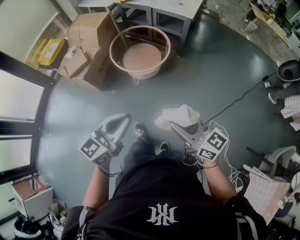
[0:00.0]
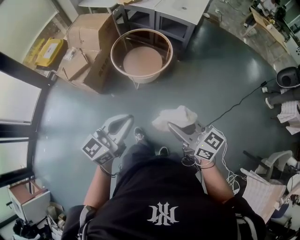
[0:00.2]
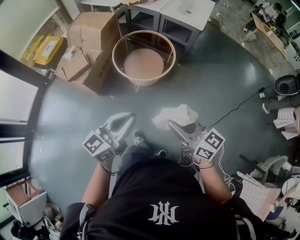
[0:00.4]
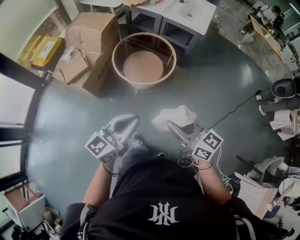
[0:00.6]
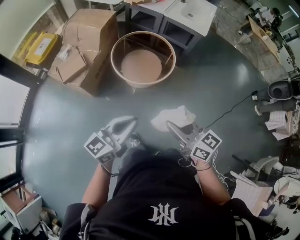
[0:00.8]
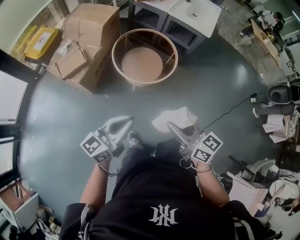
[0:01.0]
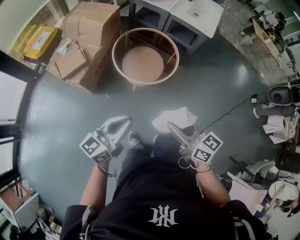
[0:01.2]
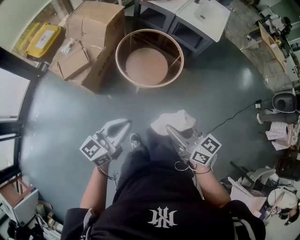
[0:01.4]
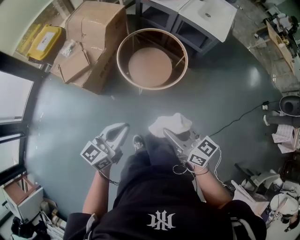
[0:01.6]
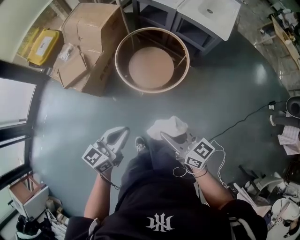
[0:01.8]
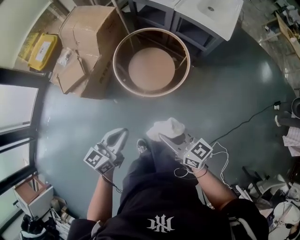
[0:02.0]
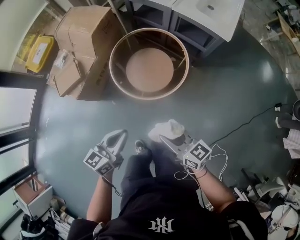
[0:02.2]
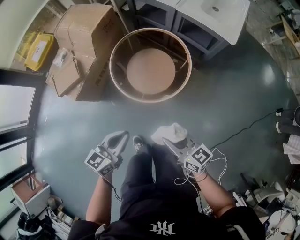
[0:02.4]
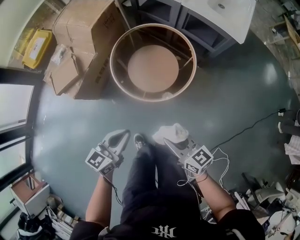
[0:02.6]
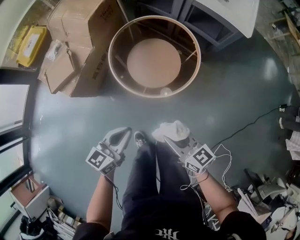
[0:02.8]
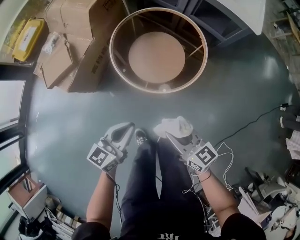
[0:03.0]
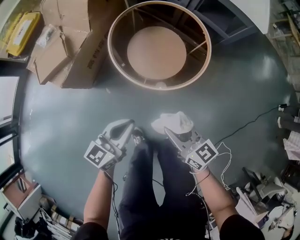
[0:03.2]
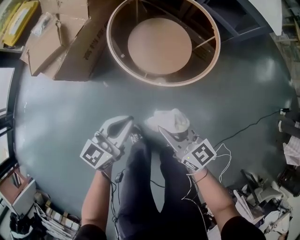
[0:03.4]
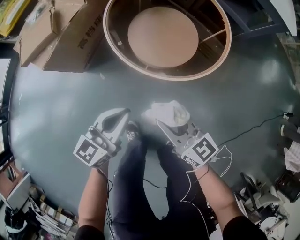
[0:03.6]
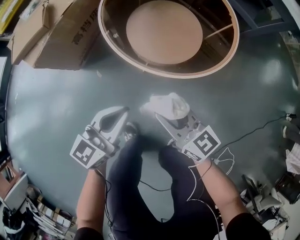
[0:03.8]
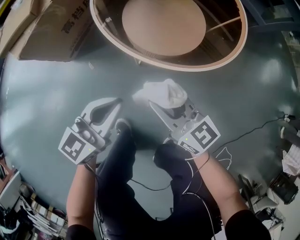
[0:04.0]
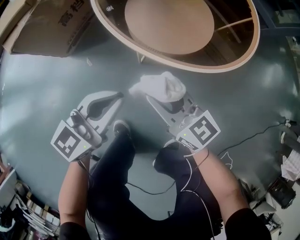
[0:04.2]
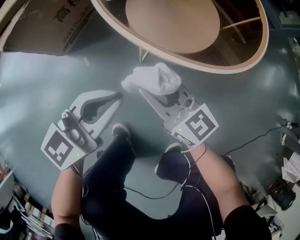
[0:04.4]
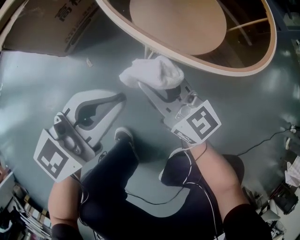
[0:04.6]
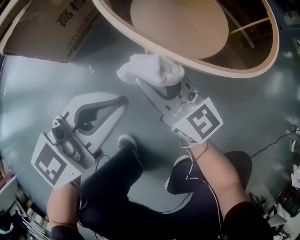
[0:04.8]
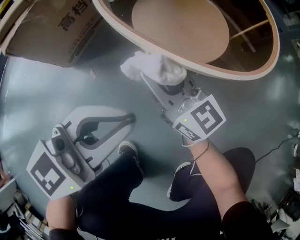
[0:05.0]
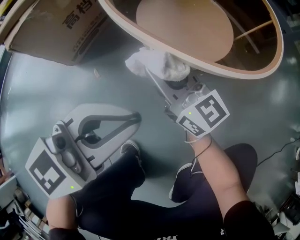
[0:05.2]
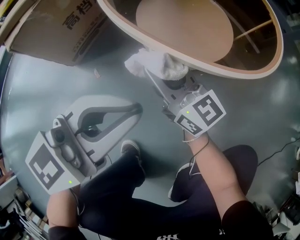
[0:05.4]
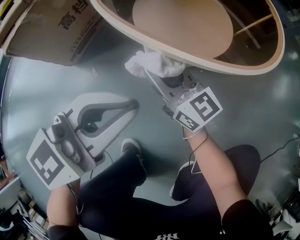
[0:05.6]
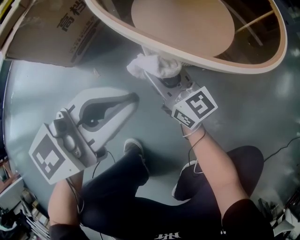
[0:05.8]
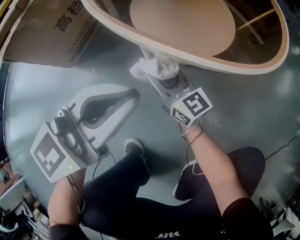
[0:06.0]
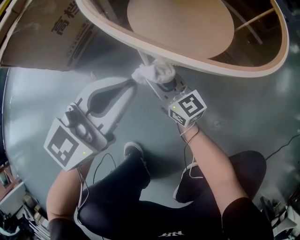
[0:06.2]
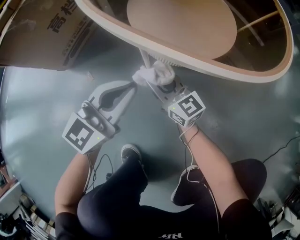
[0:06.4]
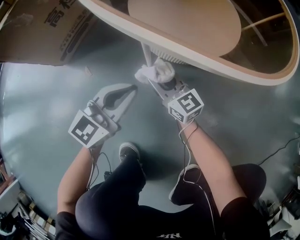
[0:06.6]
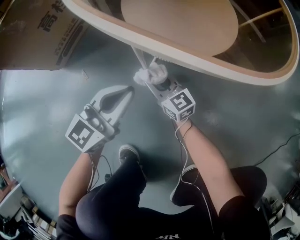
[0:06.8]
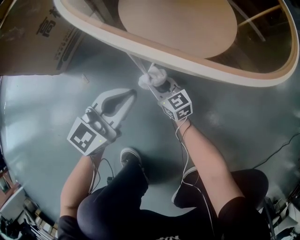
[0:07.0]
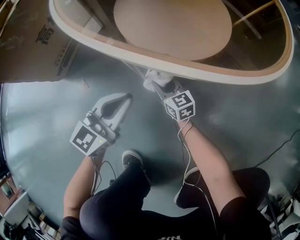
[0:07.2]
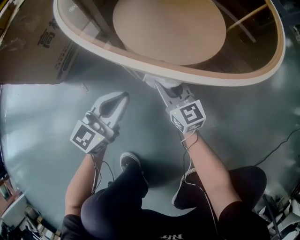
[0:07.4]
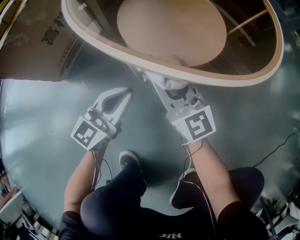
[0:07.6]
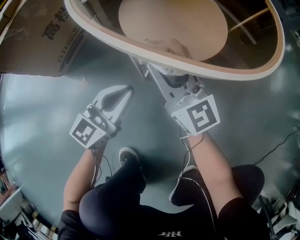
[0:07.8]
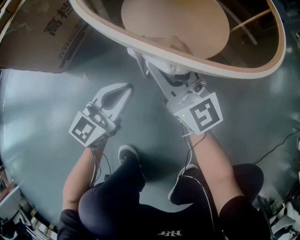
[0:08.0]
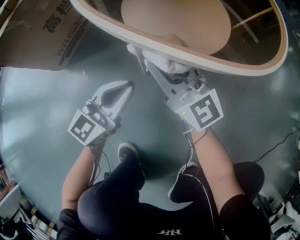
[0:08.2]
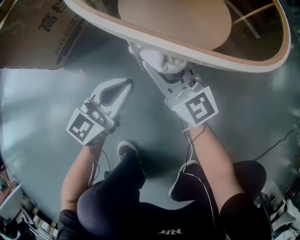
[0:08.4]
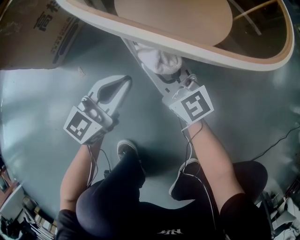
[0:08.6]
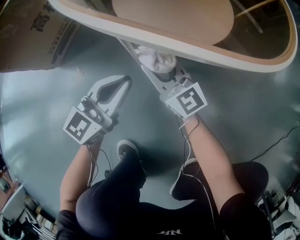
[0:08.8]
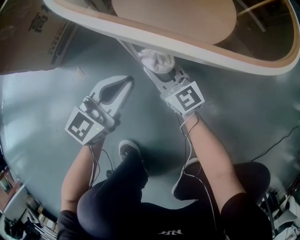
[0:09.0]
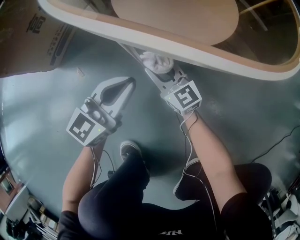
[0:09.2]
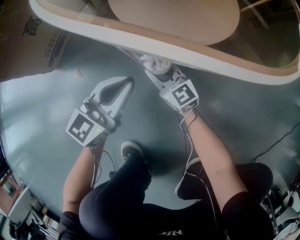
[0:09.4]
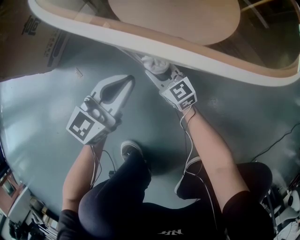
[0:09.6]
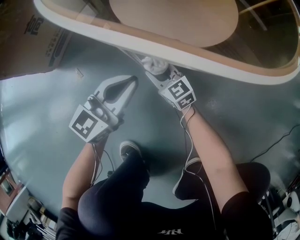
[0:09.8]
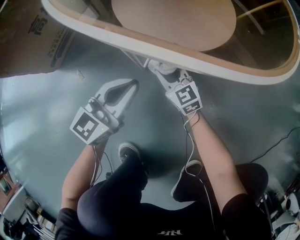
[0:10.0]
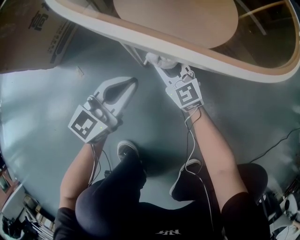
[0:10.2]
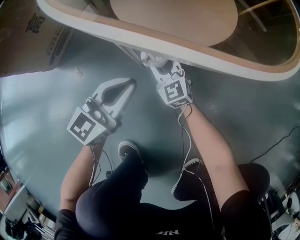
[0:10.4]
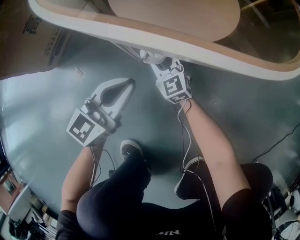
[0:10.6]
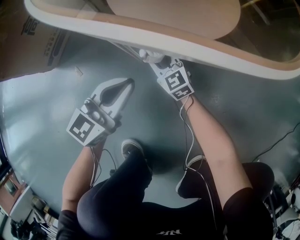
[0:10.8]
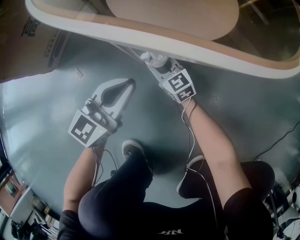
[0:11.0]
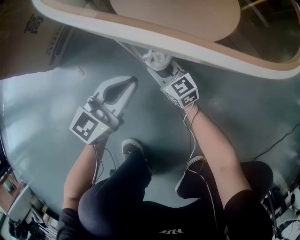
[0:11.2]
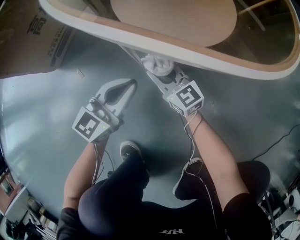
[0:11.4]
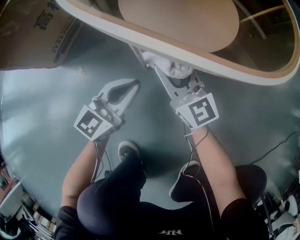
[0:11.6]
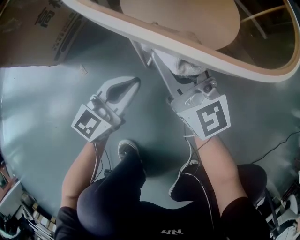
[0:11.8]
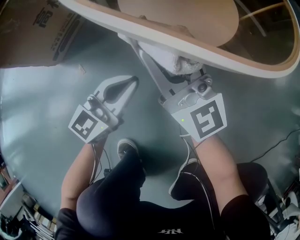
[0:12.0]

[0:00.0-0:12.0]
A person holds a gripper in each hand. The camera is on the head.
0:00.0 to 0:01.6: The left gripper moves forward, to the left and downward, roughly 30 cm, while the right gripper goes approximately 30 cm forward and to the left.
0:01.6 to 0:03.0: Both grippers travel together downward and forward, about 25 cm.
0:03.0 to 0:04.4: The two grippers go approximately 30 cm downward.
0:04.4 to 0:06.0: The right gripper moves downward and forward, approximately 15 cm.
0:06.0 to 0:07.6: The right gripper reaches approximately 20 cm downward, then returns, and rotates about 20 degrees. Meanwhile the left gripper is displaced downward by some 20 cm.
0:07.6 to 0:09.0: The right gripper heads downward, covering roughly 15 cm.
0:09.0 to 0:10.4: The right gripper shifts about 10 cm downward, and rotates roughly 20 degrees.
0:10.4 to 0:12.0: The right gripper goes about 25 cm upward, and angles its fingers upward, by some 40 degrees.

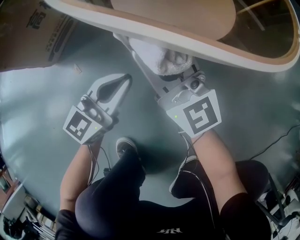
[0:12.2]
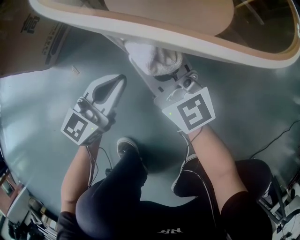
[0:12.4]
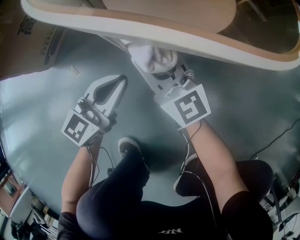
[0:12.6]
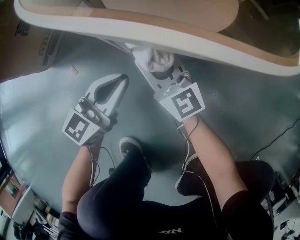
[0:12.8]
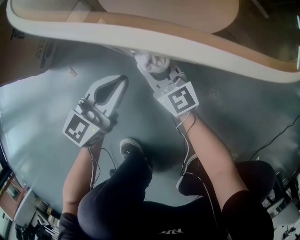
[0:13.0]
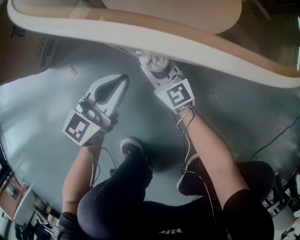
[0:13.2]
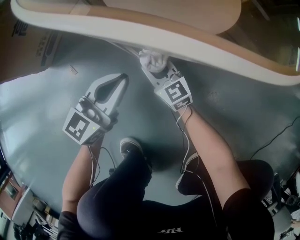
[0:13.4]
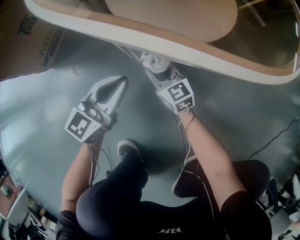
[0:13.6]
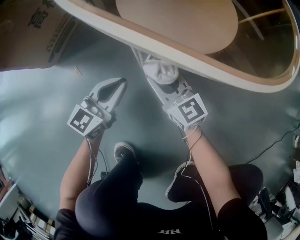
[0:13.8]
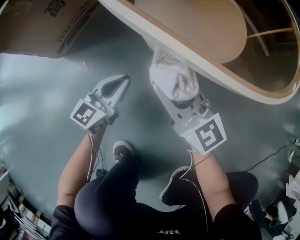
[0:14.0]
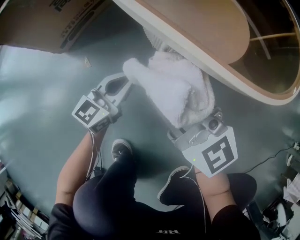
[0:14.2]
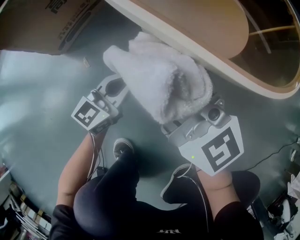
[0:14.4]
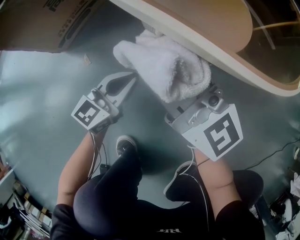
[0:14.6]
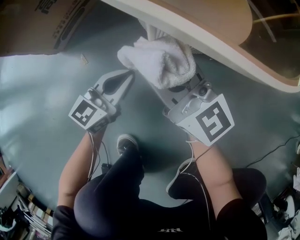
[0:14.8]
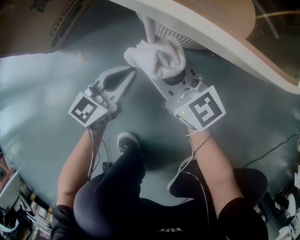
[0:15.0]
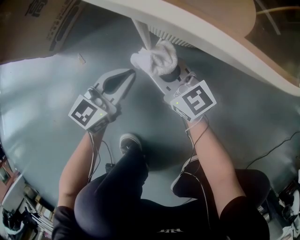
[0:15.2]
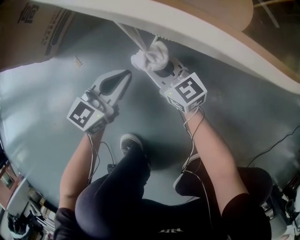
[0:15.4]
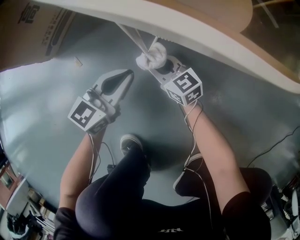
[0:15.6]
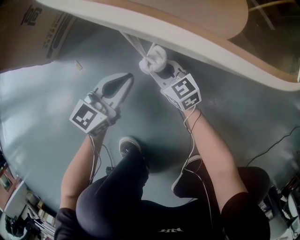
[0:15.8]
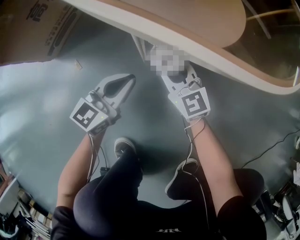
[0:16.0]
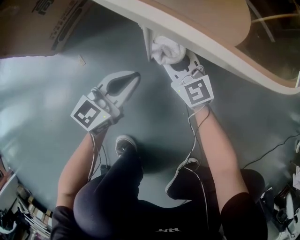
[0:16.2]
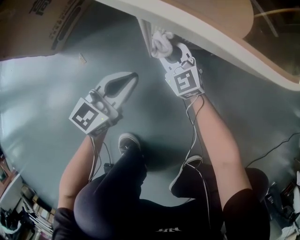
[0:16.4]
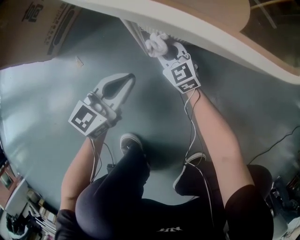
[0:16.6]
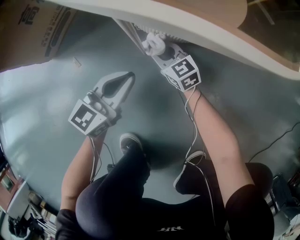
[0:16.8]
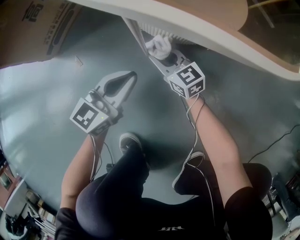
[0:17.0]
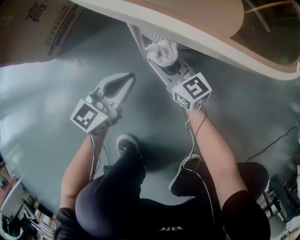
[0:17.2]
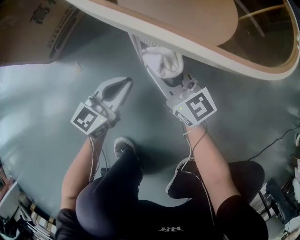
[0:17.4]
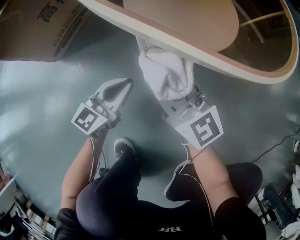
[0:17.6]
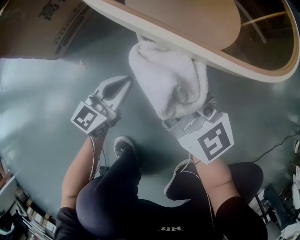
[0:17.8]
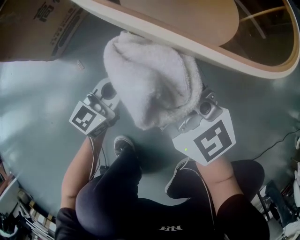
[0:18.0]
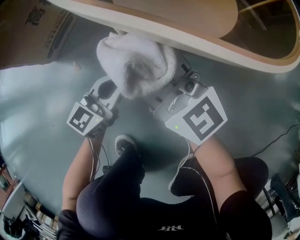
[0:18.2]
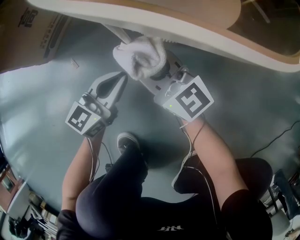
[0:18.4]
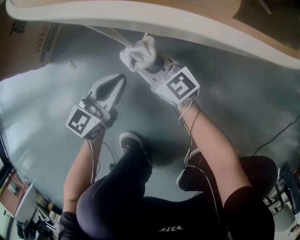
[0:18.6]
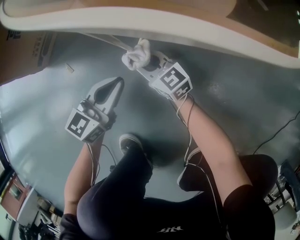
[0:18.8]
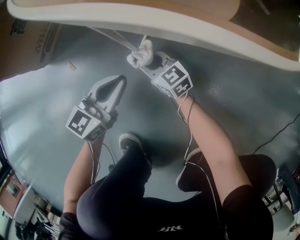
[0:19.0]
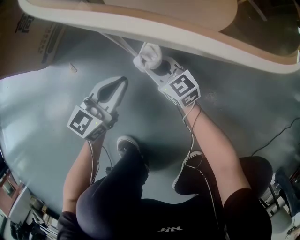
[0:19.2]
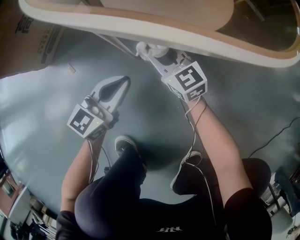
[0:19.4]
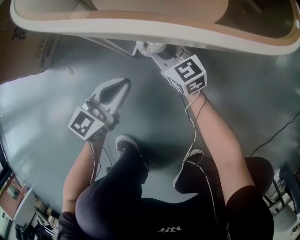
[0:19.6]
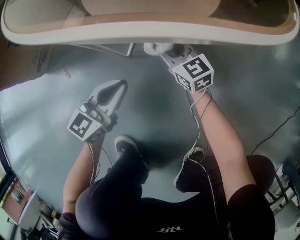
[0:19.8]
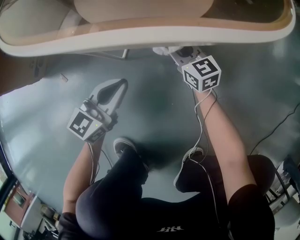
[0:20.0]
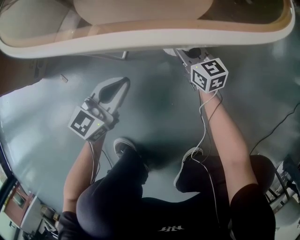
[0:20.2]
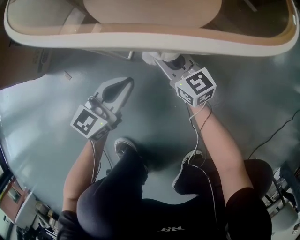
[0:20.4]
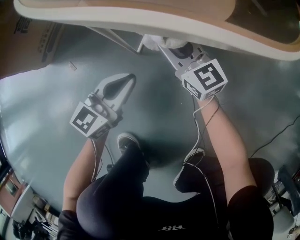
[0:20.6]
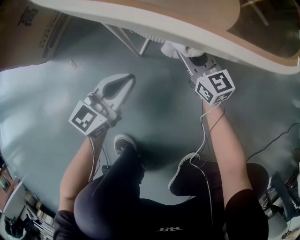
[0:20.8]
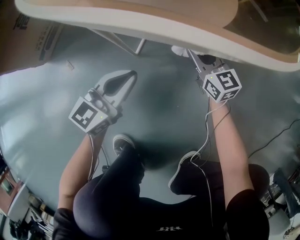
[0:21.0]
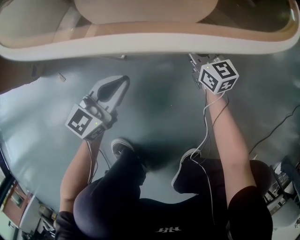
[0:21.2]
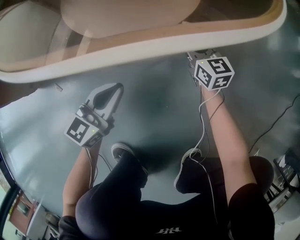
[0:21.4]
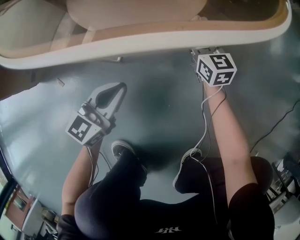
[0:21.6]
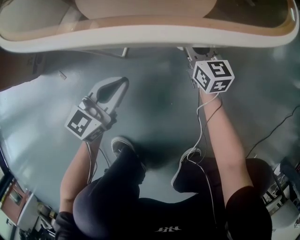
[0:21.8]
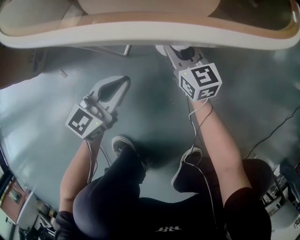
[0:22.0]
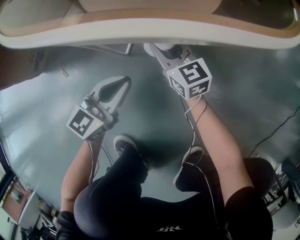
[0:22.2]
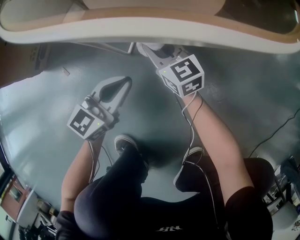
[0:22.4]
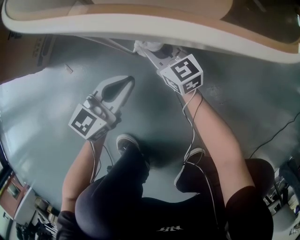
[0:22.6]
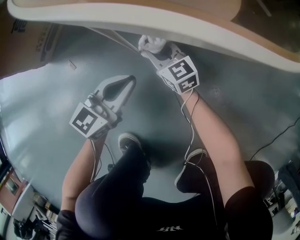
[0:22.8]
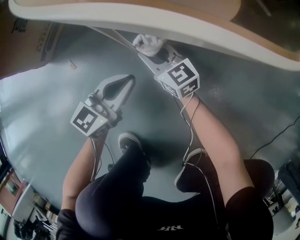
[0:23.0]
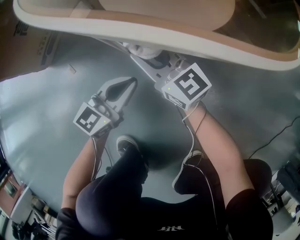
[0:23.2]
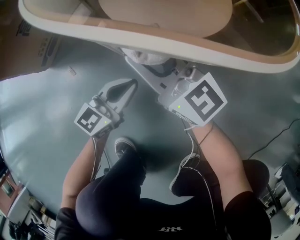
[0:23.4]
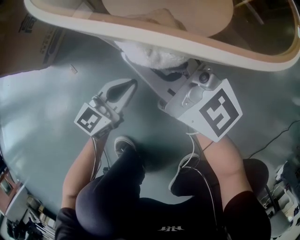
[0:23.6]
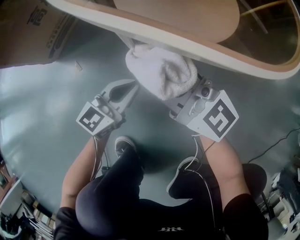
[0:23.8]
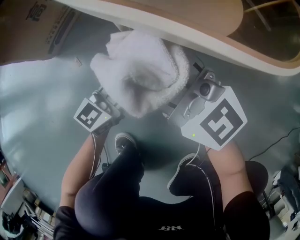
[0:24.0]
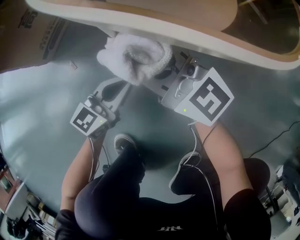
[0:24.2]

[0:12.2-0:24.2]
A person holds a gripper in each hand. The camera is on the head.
0:12.2 to 0:13.8: The right gripper shifts about 15 cm downward, and swivels roughly 30 degrees.
0:13.8 to 0:15.2: The right gripper reaches approximately 25 cm upward, then returns.
0:15.2 to 0:16.6: The right gripper moves up and down over roughly 10 cm, changing direction 2 times, and turns by about 30 degrees.
0:16.6 to 0:18.2: The right gripper travels upward by approximately 30 cm, and points its fingers some 40 degrees further upward.
0:18.2 to 0:19.8: The right gripper is displaced downward and to the right by about 25 cm, and points its fingers about 30 degrees further downward.
0:19.8 to 0:21.2: The right gripper moves left and right over about 10 cm, changing direction 2 times.
0:21.2 to 0:22.6: The right gripper moves to the left, some 15 cm.
0:22.6 to 0:24.2: The right gripper moves up and down over about 30 cm, changing direction 2 times, and turns by some 30 degrees.
